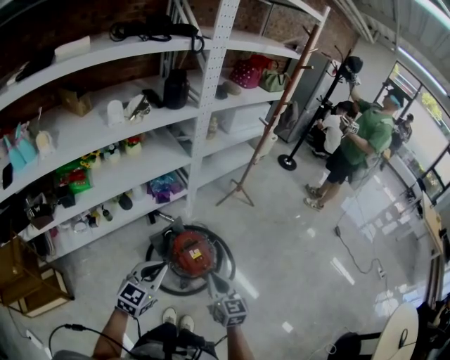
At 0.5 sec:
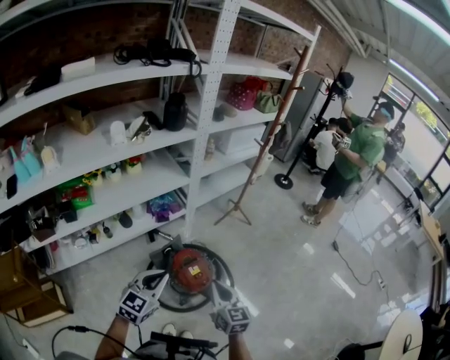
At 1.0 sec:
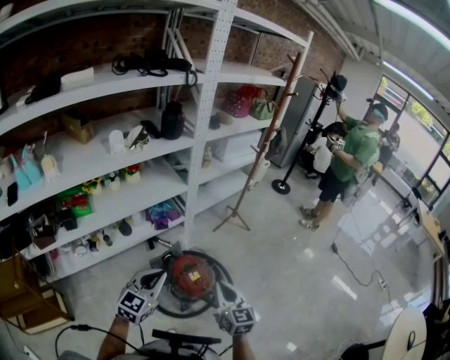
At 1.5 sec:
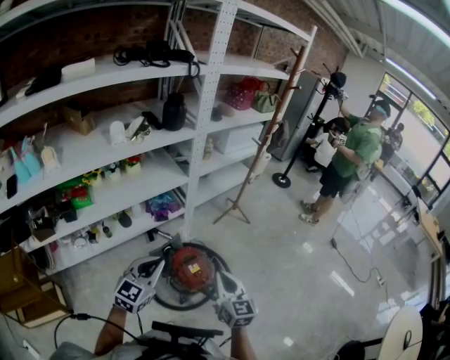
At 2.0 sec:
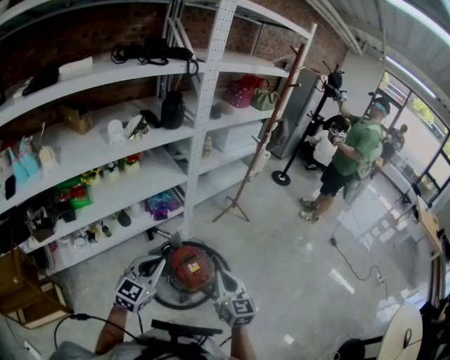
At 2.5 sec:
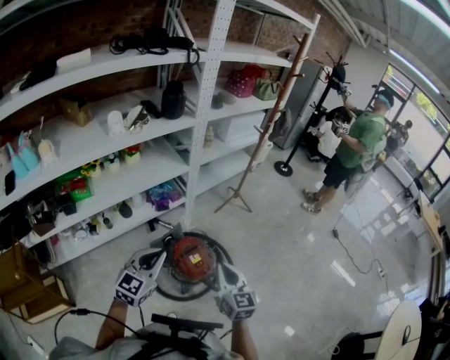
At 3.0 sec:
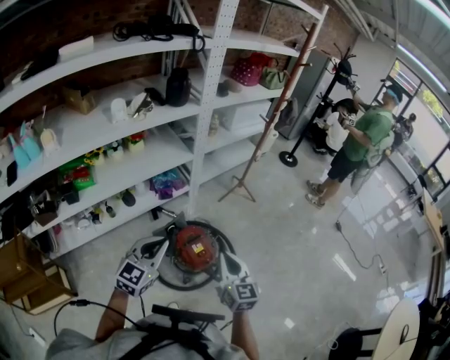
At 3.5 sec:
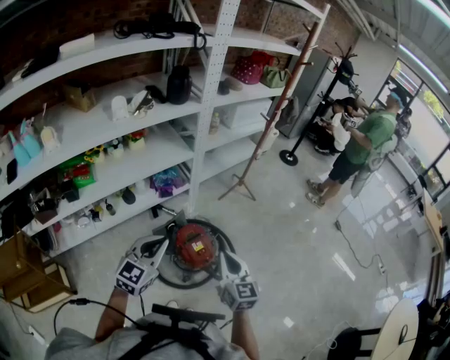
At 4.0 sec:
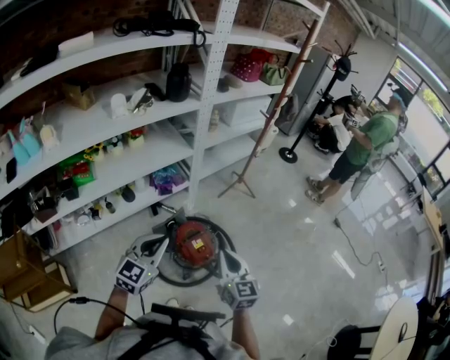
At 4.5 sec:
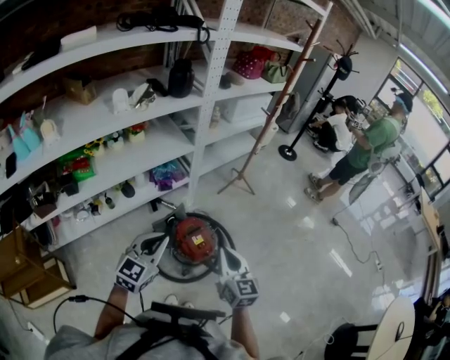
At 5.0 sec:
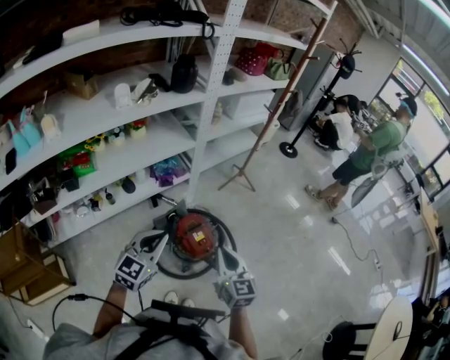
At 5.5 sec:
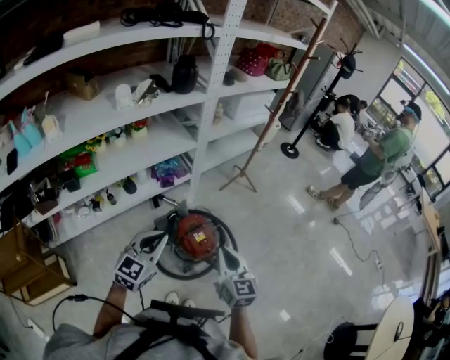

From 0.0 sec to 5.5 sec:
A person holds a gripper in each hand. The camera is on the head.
From 0.0 sec to 2.0 sec: The grippers both shift upward by roughly 5 cm.
From 2.0 sec to 3.5 sec: Both grippers stay about where they are.
From 3.5 sec to 5.5 sec: The grippers stay close to where they were, moving slightly.

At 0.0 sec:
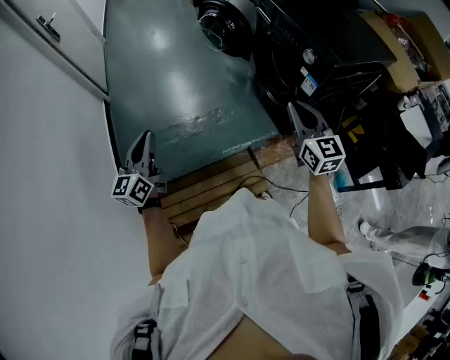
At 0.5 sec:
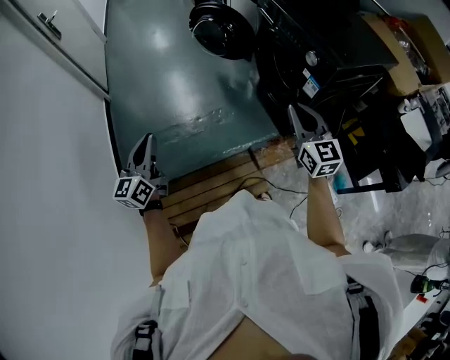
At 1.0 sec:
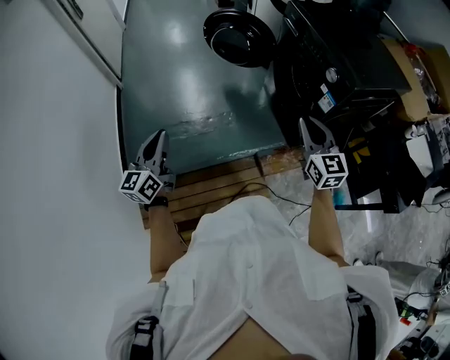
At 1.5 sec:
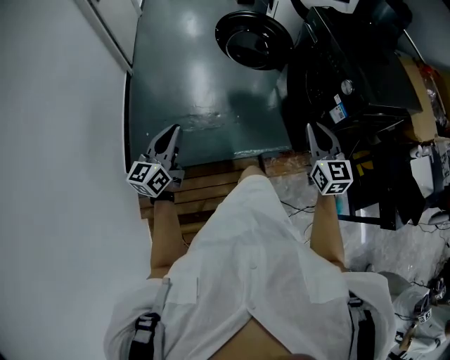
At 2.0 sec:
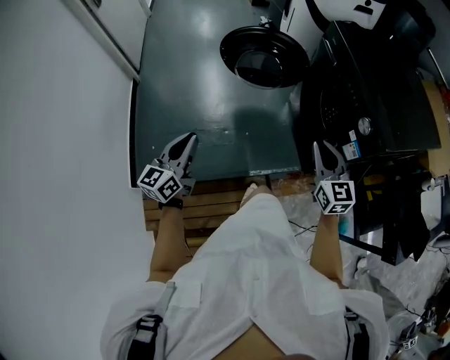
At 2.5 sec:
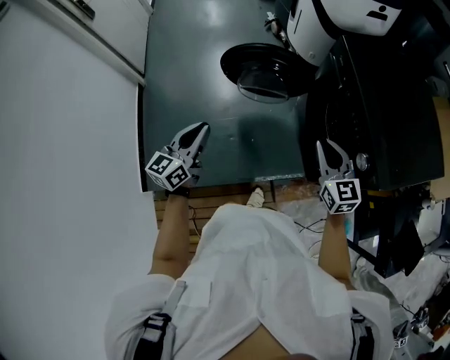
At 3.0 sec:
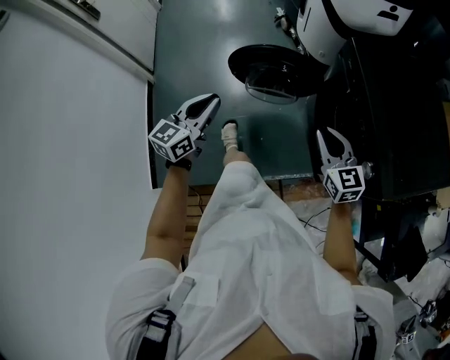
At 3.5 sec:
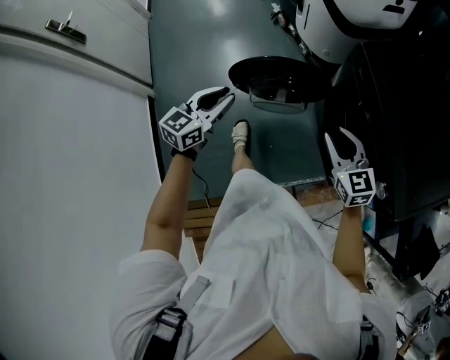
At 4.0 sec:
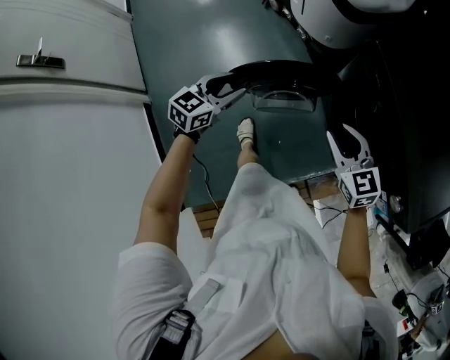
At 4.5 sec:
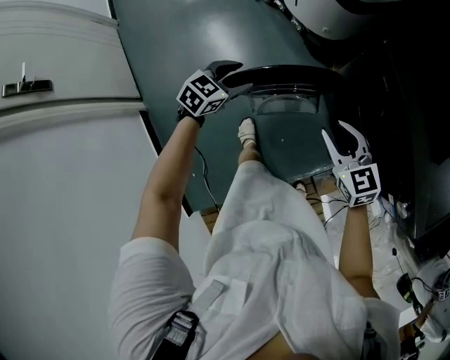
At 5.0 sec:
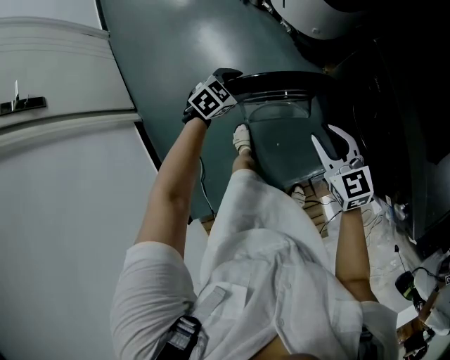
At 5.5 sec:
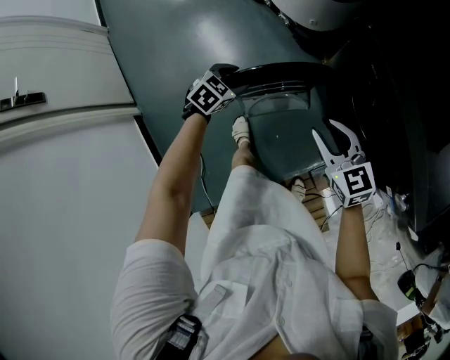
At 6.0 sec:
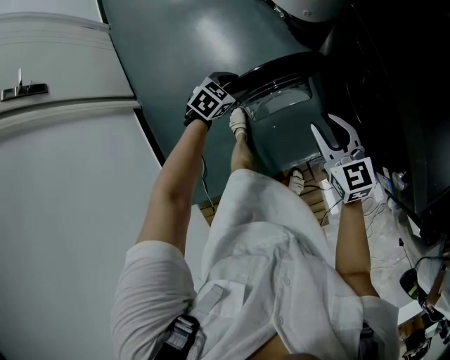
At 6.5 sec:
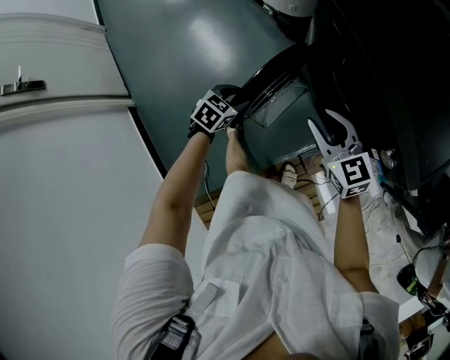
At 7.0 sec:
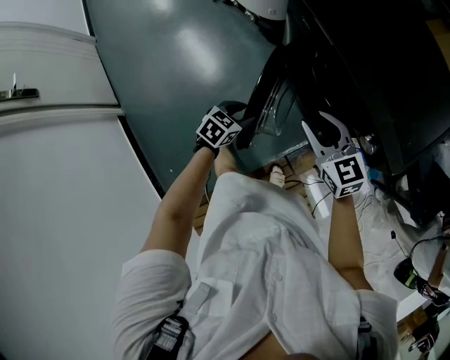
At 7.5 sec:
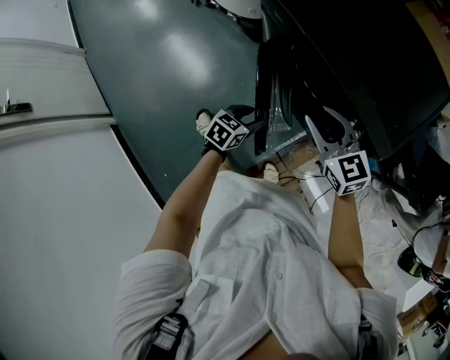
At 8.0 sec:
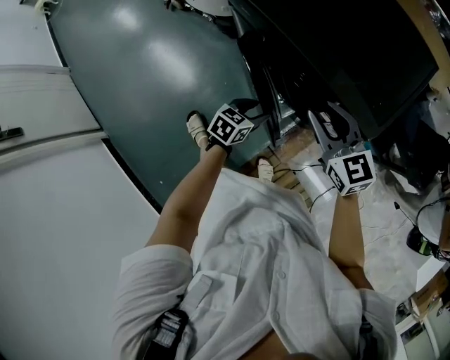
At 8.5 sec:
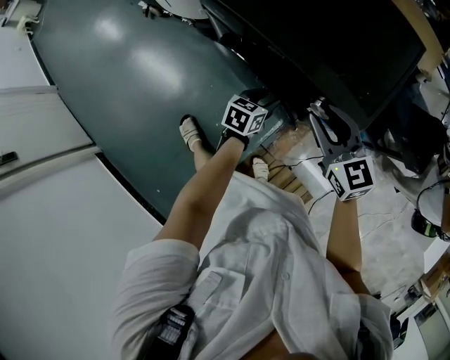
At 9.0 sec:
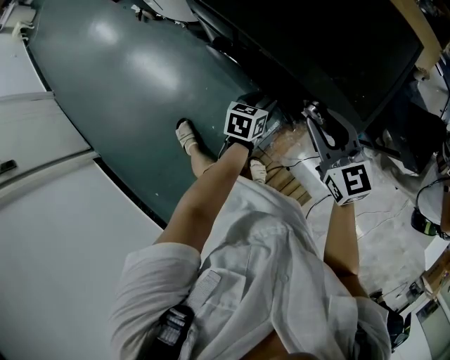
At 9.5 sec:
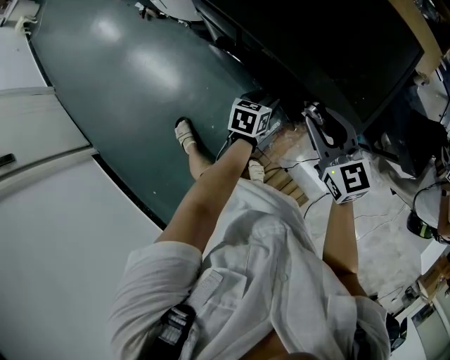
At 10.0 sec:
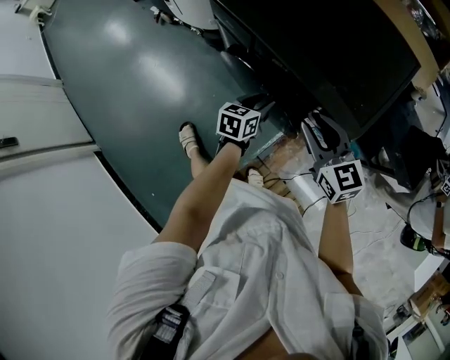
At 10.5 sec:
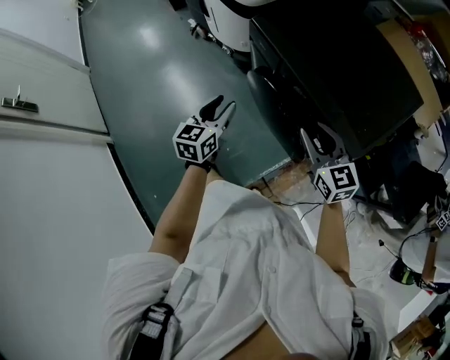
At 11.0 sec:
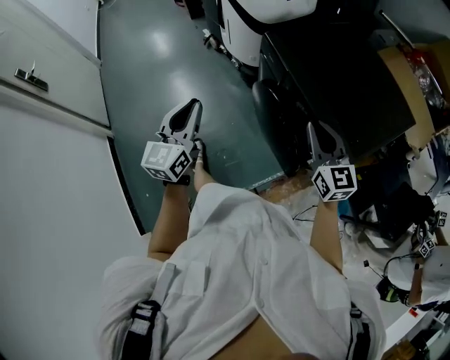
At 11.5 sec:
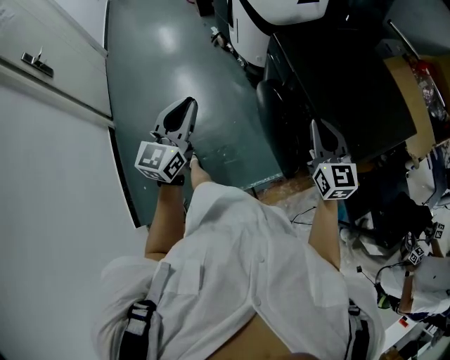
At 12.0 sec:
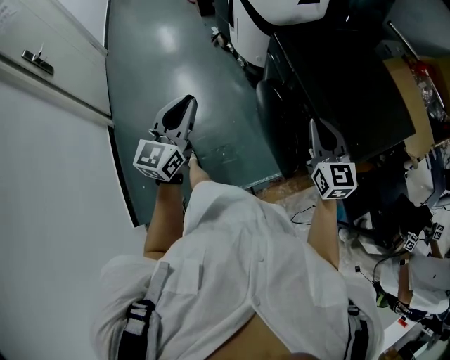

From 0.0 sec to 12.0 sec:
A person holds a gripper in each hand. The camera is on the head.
From 0.0 sec to 2.0 sec: The two grippers go roughly 15 cm forward and downward.
From 2.0 sec to 4.0 sec: Both grippers travel together forward, approximately 40 cm. The right gripper opens up. Meanwhile the left gripper rotates about 50 degrees, and opens up.
From 4.0 sec to 6.0 sec: The left gripper heads downward and to the right, covering about 15 cm, and rotates some 30 degrees.
From 6.0 sec to 8.0 sec: The two grippers go about 30 cm to the right. The left gripper swivels about 20 degrees.
From 8.0 sec to 10.0 sec: The left gripper travels forward by roughly 5 cm.
From 10.0 sec to 12.0 sec: The right gripper moves upward, roughly 10 cm, and closes up; the left gripper goes about 40 cm upward and to the left, tips its fingers upward by about 30 degrees, and closes.

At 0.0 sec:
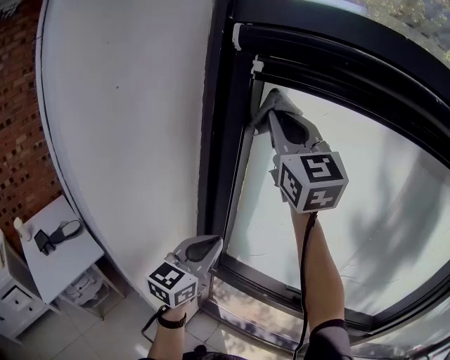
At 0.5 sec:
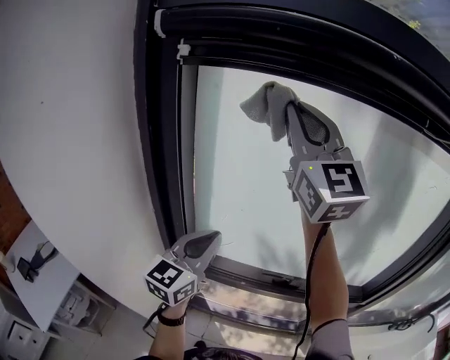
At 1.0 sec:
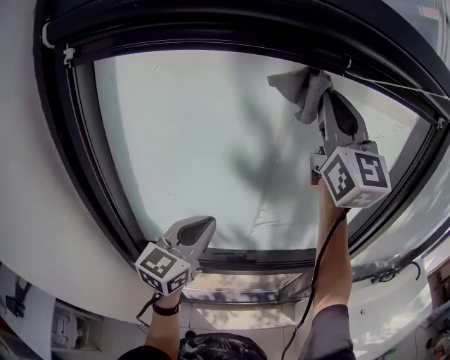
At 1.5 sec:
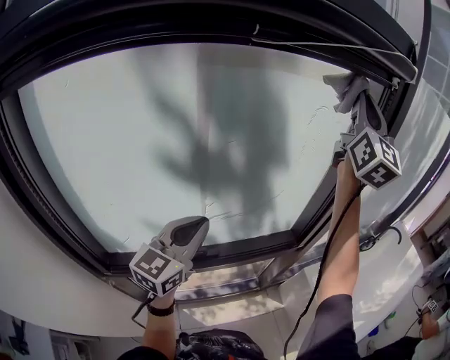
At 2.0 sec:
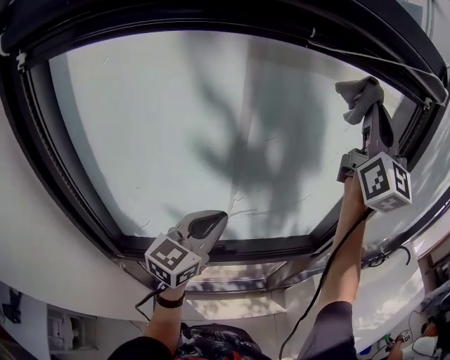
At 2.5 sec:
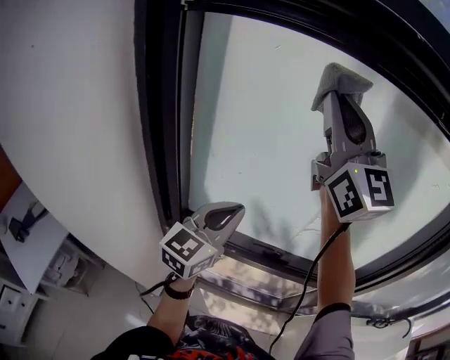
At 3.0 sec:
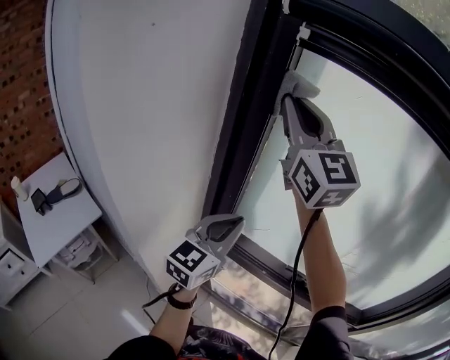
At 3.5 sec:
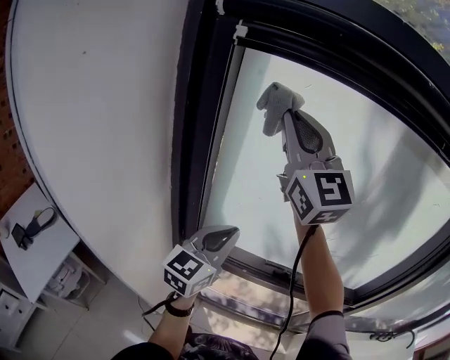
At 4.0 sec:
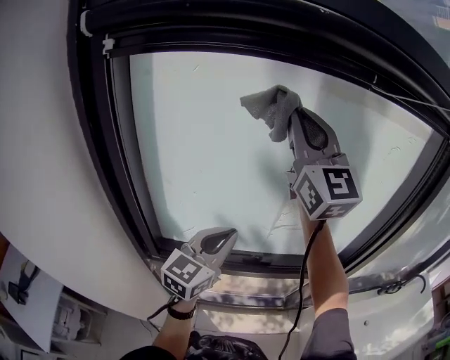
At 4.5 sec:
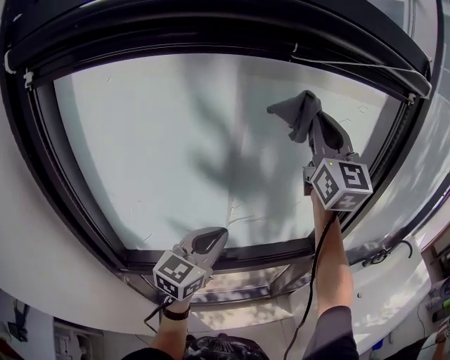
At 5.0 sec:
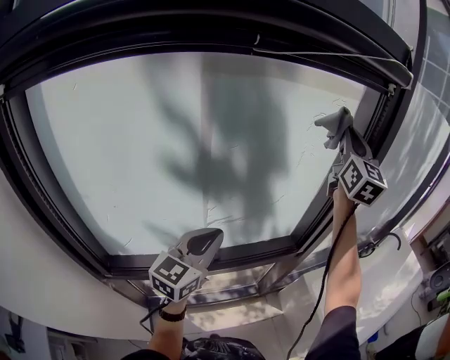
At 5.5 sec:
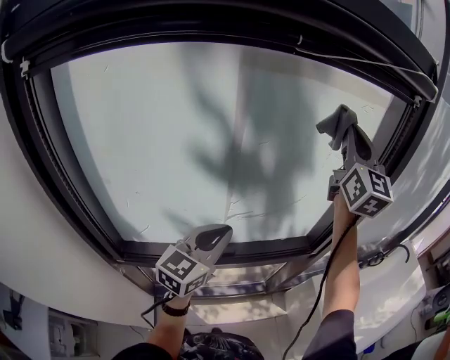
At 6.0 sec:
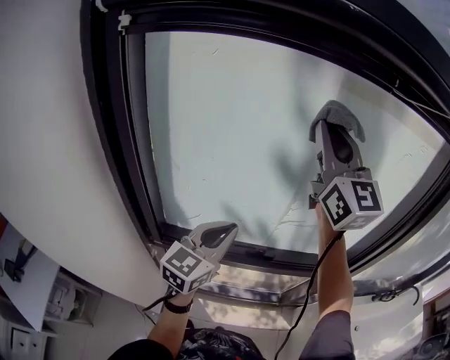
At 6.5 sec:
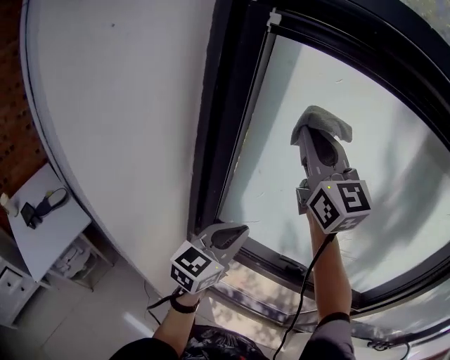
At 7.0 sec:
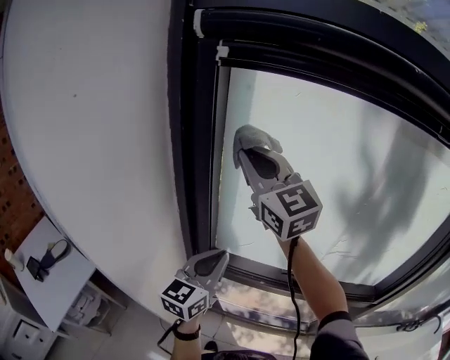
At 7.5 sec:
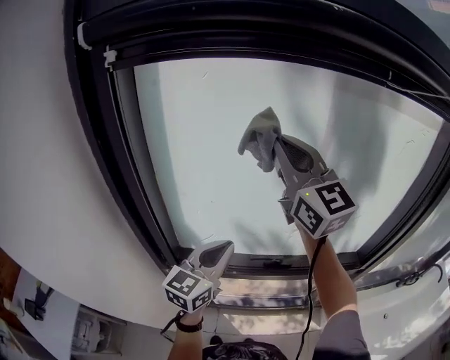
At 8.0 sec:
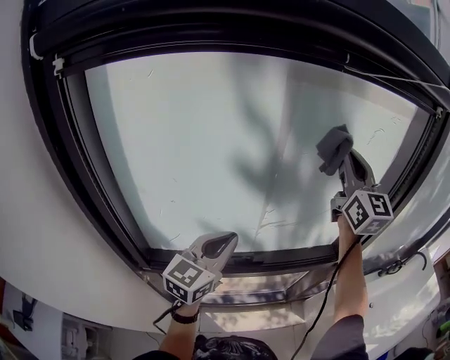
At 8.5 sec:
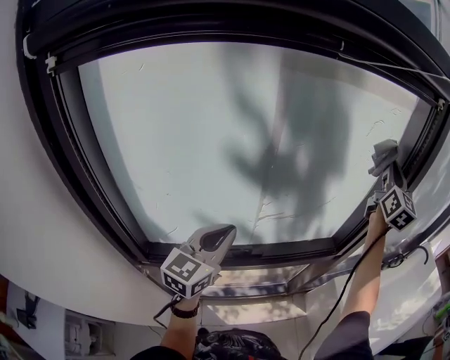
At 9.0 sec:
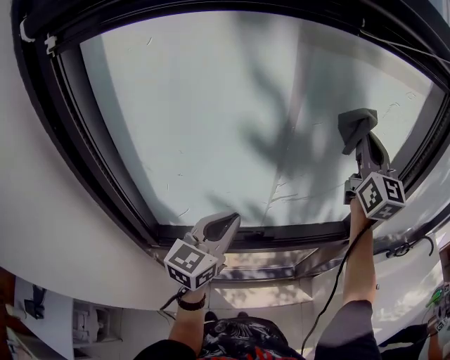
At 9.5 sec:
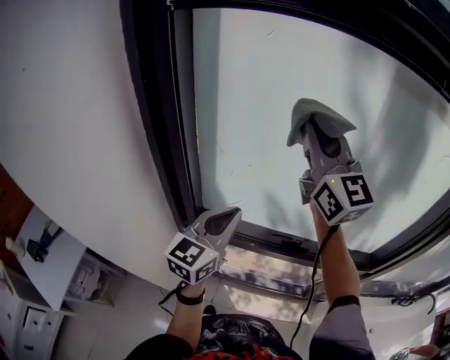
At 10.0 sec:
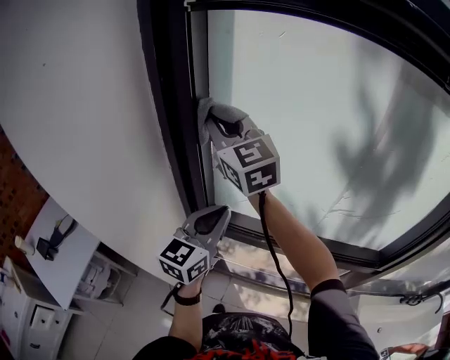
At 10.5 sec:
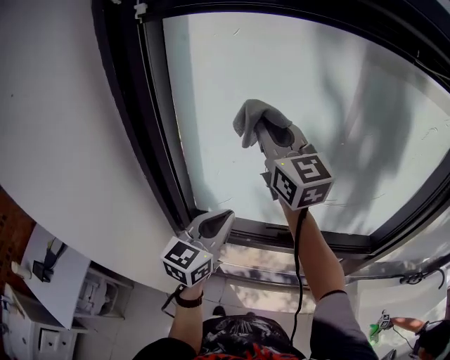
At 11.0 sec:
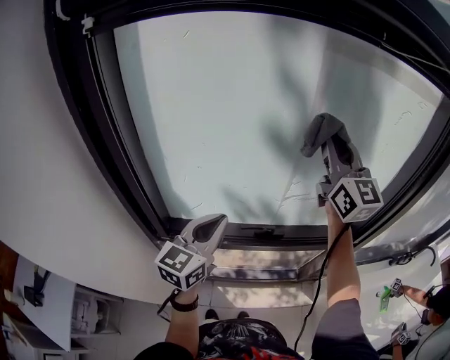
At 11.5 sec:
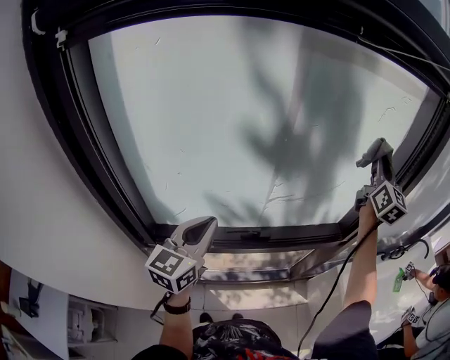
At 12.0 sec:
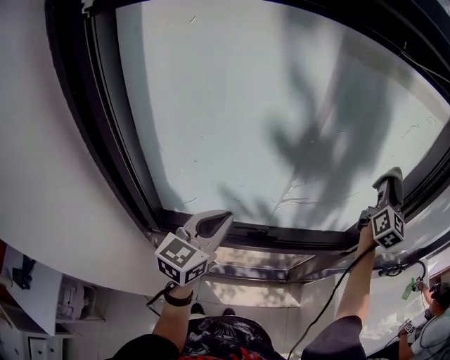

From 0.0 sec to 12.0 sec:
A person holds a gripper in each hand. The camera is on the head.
From 0.0 sec to 2.0 sec: The right gripper moves approximately 60 cm, and swivels some 50 degrees. Meanwhile the left gripper shifts by approximately 35 cm, and rotates some 40 degrees.
From 2.0 sec to 4.0 sec: The right gripper changes its angle by some 30 degrees.
From 8.0 sec to 10.0 sec: The right gripper changes place by approximately 50 cm, and rotates approximately 50 degrees, while the left gripper moves about 20 cm, and turns by approximately 30 degrees.
From 10.0 sec to 12.0 sec: The left gripper shifts by approximately 15 cm, while the right gripper ends up approximately 70 cm from where it was, and turns by roughly 70 degrees.
